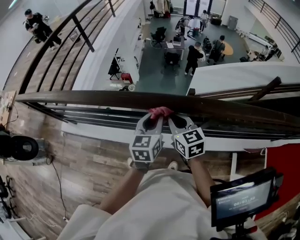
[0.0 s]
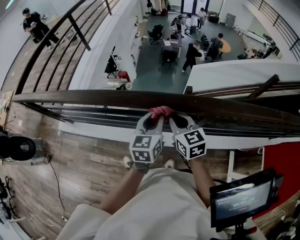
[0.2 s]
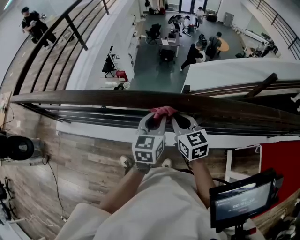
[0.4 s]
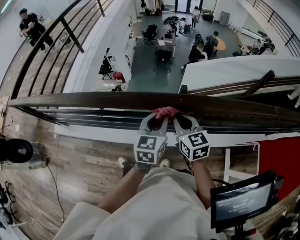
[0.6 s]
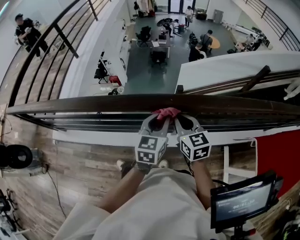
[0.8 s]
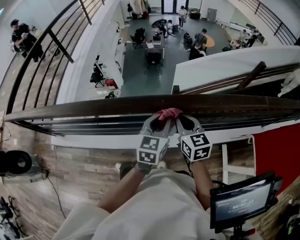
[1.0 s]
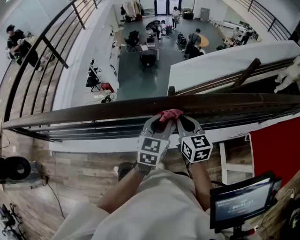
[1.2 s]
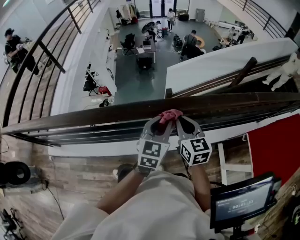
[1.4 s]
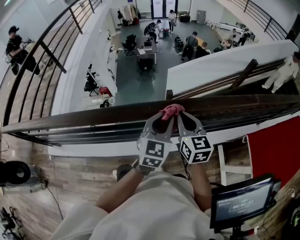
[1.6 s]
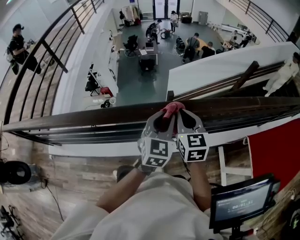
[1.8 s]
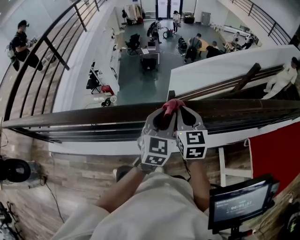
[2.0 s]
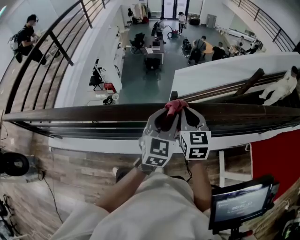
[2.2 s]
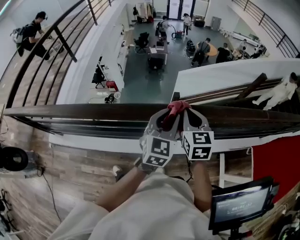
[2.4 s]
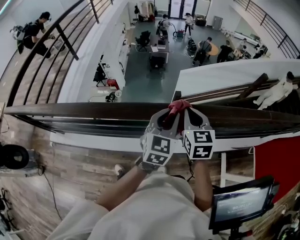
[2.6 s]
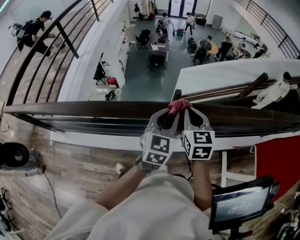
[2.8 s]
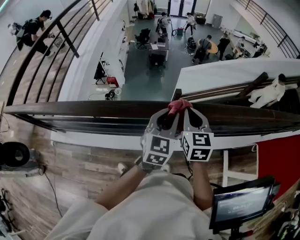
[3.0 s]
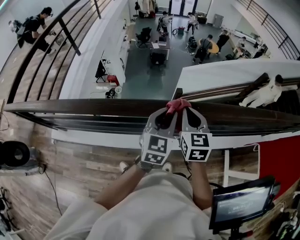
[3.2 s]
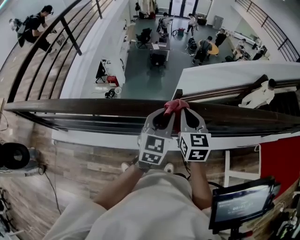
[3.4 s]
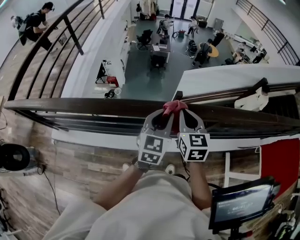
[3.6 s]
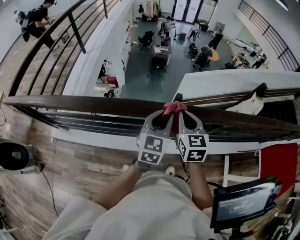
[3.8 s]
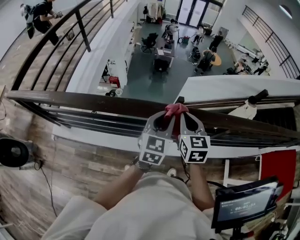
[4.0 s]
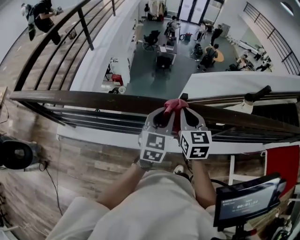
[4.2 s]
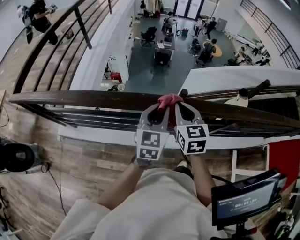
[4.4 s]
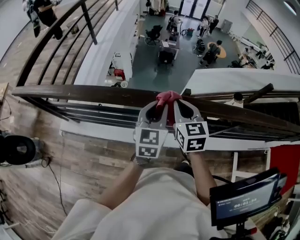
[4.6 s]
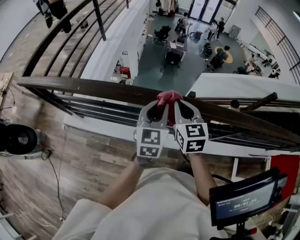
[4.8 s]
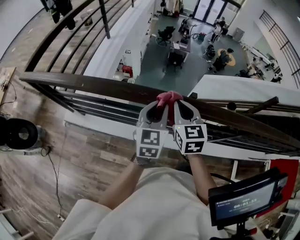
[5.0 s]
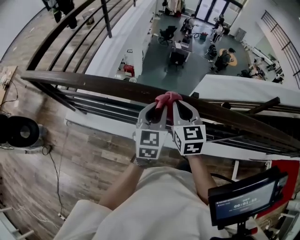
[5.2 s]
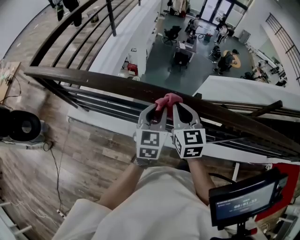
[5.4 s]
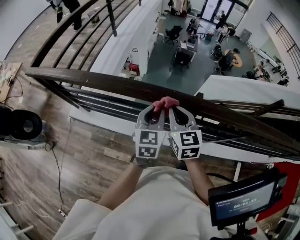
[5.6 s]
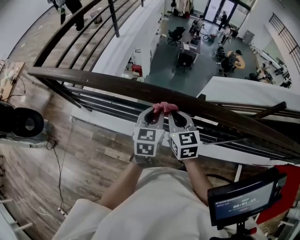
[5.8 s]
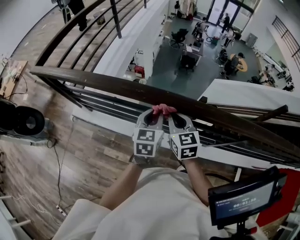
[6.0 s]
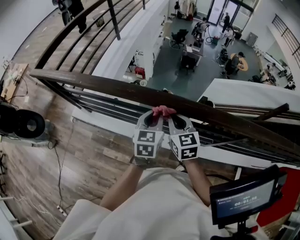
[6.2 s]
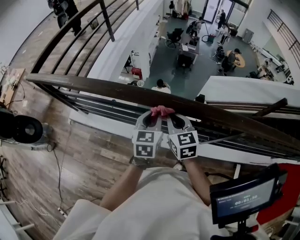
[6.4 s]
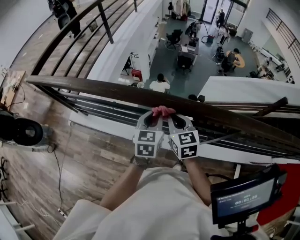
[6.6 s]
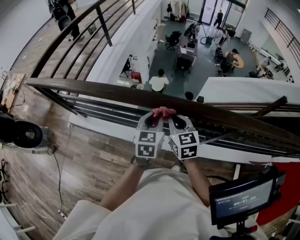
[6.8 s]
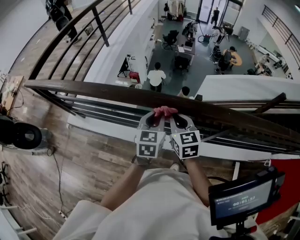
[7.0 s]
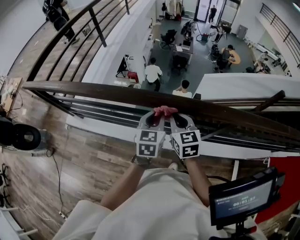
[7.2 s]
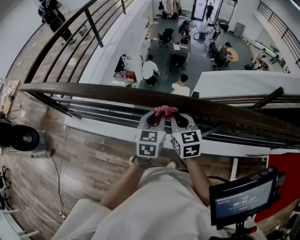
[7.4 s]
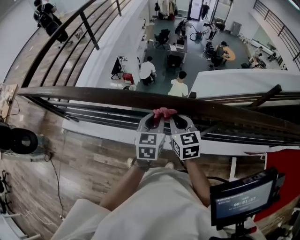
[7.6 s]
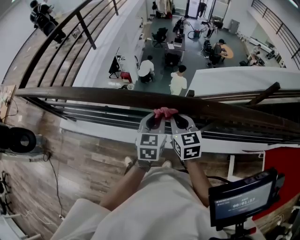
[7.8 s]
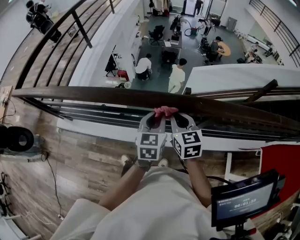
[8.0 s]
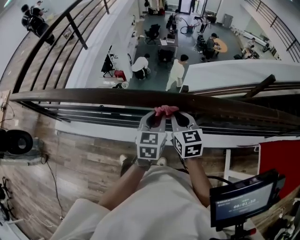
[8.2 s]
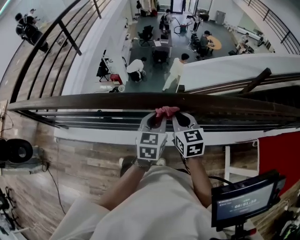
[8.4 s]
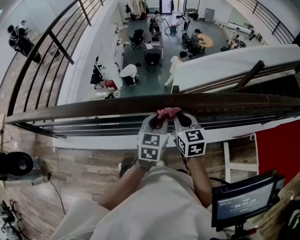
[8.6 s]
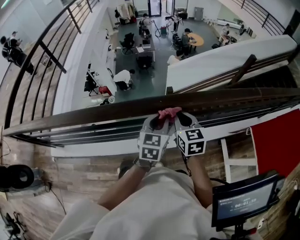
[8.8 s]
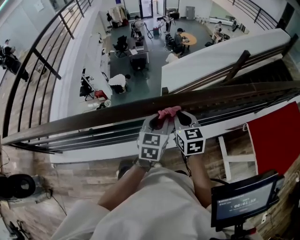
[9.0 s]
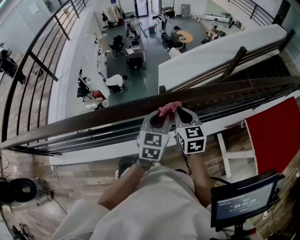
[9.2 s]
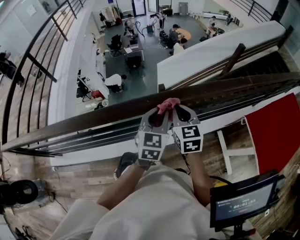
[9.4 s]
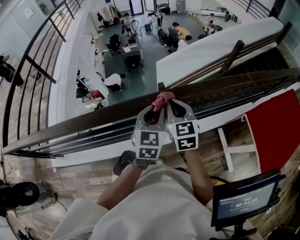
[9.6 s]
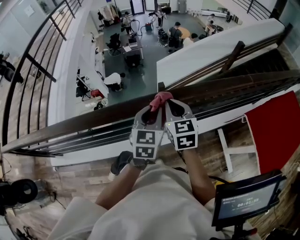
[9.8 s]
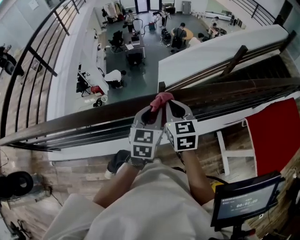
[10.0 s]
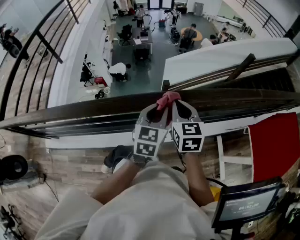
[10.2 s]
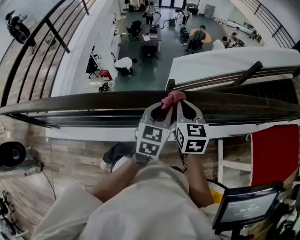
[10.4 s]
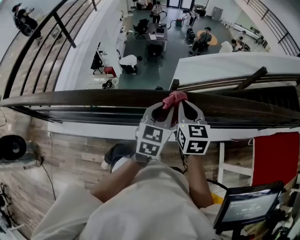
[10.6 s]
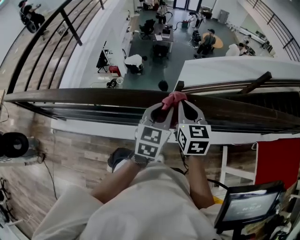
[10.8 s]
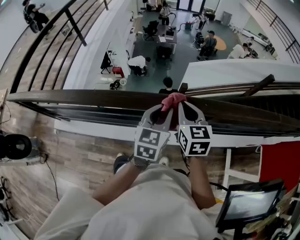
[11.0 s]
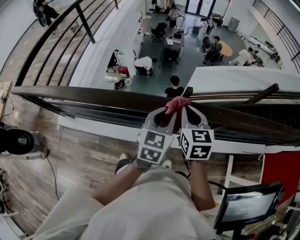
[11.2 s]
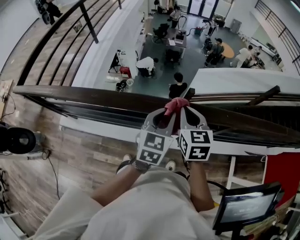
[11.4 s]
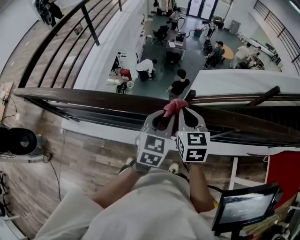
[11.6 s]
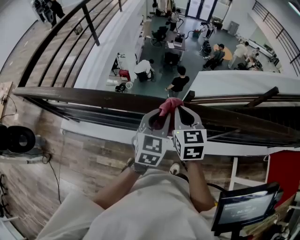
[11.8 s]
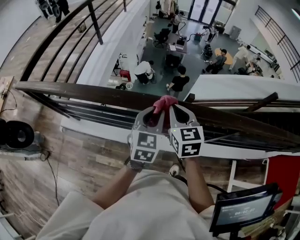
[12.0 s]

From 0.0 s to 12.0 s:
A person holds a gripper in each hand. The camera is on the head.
From 0.0 s to 1.6 s: The two grippers go about 20 cm to the right. The left gripper turns by some 30 degrees; the right gripper rotates about 30 degrees.
From 1.6 s to 3.0 s: Both grippers move to the left, some 10 cm.
From 3.0 s to 4.4 s: Both grippers travel together to the left, approximately 25 cm.
From 4.4 s to 6.0 s: The grippers both shift to the left and downward by approximately 10 cm.
From 6.0 s to 7.6 s: Both grippers travel together to the right, approximately 20 cm.
From 7.6 s to 9.0 s: The grippers both shift to the right by about 20 cm. The right gripper rotates about 20 degrees. The left gripper rotates roughly 20 degrees.
From 9.0 s to 10.4 s: The left gripper changes place by approximately 5 cm. The right gripper goes approximately 10 cm upward and to the left.
From 10.4 s to 12.0 s: Both grippers travel together to the left, roughly 30 cm.

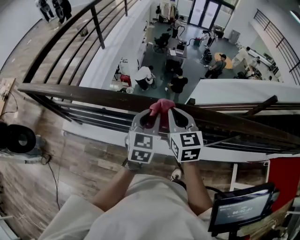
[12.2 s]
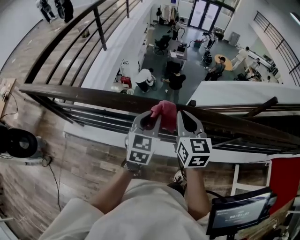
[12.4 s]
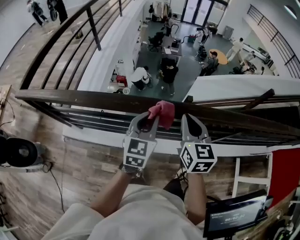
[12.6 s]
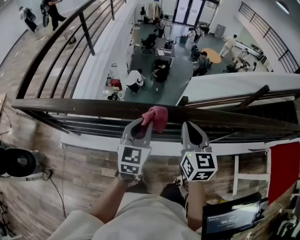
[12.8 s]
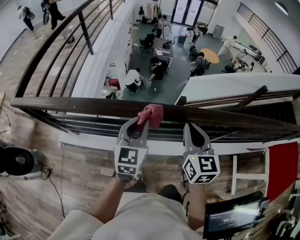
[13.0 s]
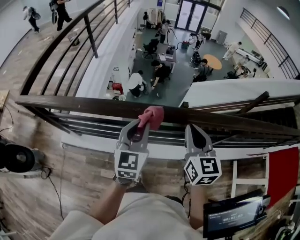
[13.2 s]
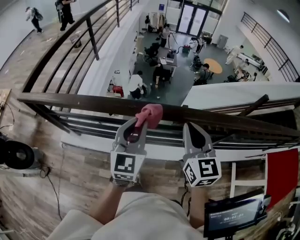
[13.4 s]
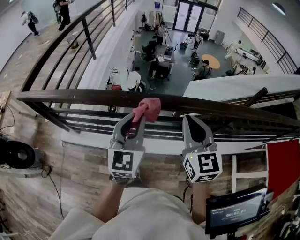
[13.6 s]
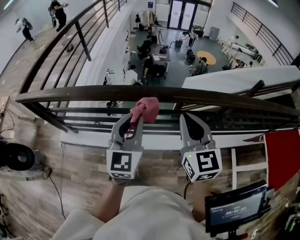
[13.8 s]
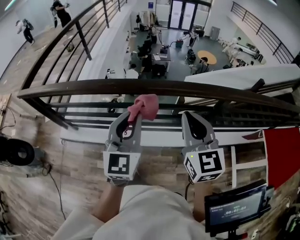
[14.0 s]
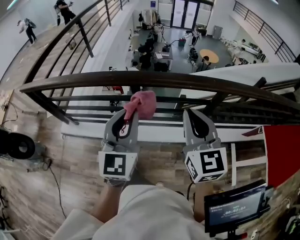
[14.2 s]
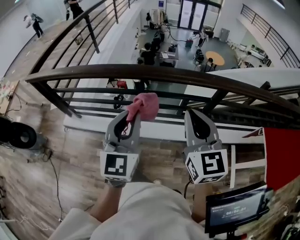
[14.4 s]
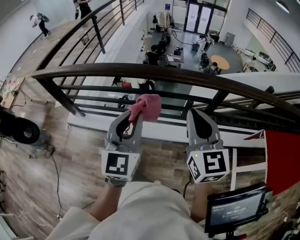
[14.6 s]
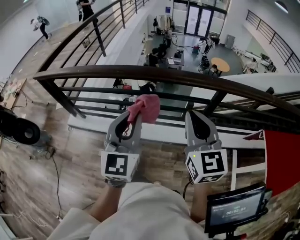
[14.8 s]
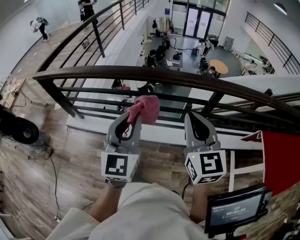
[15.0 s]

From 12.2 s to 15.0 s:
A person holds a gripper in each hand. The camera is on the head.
From 12.2 s to 13.6 s: The right gripper shifts approximately 15 cm backward and upward, while the left gripper heads upward and backward, covering approximately 15 cm.
From 13.6 s to 15.0 s: Both grippers travel together backward and to the right, roughly 20 cm.

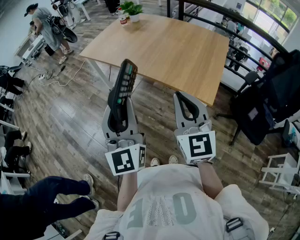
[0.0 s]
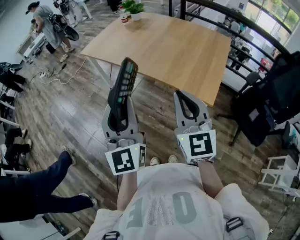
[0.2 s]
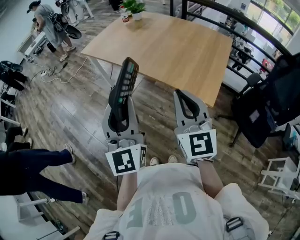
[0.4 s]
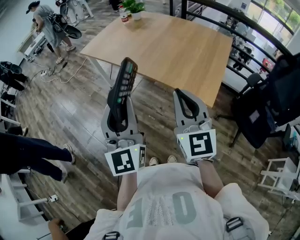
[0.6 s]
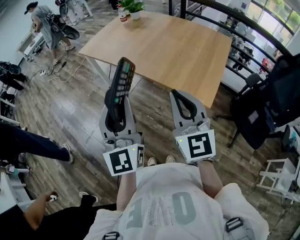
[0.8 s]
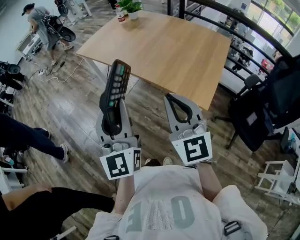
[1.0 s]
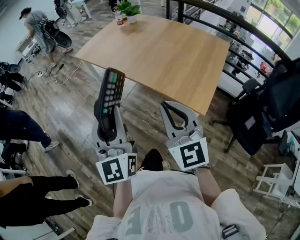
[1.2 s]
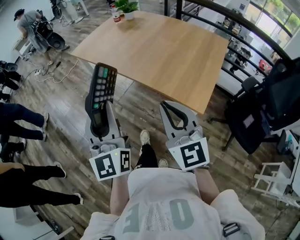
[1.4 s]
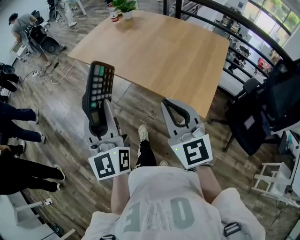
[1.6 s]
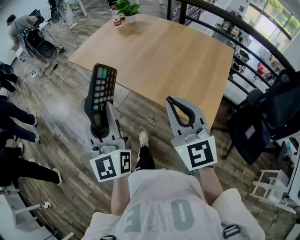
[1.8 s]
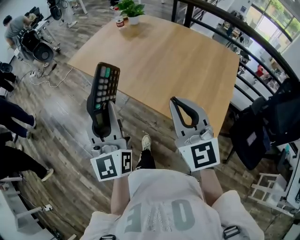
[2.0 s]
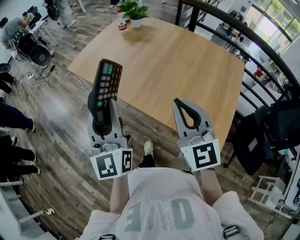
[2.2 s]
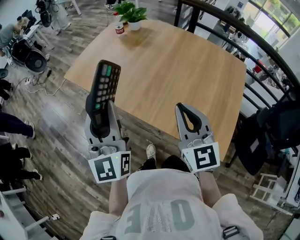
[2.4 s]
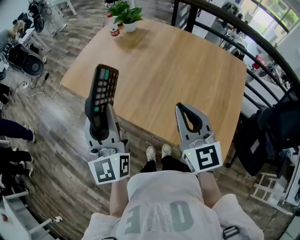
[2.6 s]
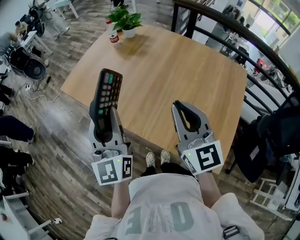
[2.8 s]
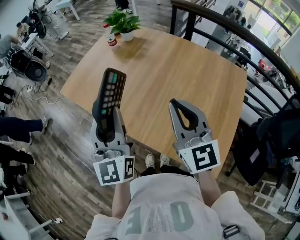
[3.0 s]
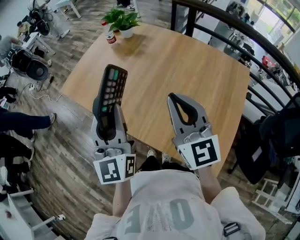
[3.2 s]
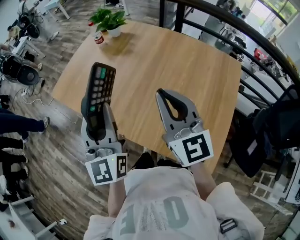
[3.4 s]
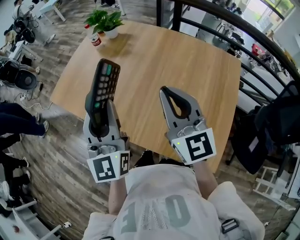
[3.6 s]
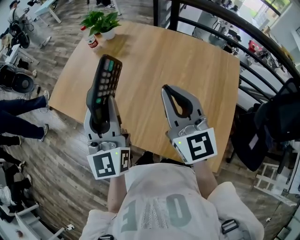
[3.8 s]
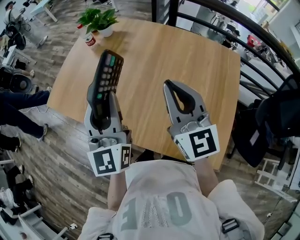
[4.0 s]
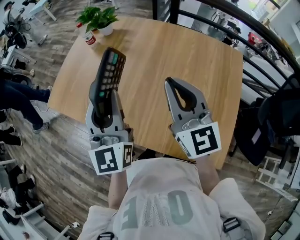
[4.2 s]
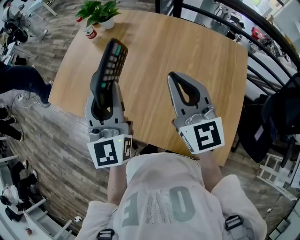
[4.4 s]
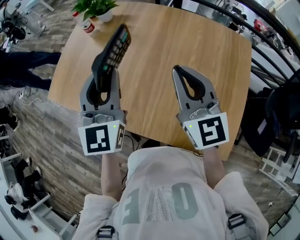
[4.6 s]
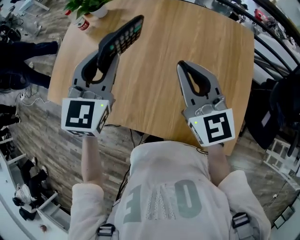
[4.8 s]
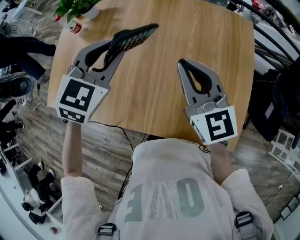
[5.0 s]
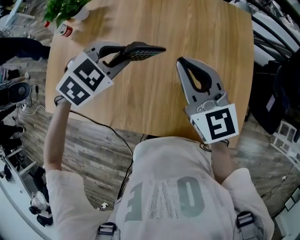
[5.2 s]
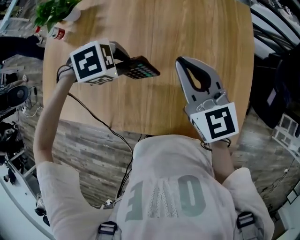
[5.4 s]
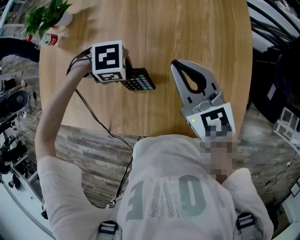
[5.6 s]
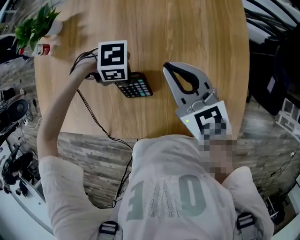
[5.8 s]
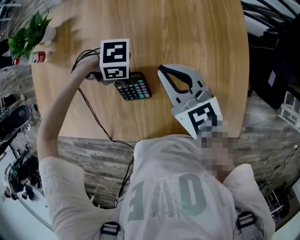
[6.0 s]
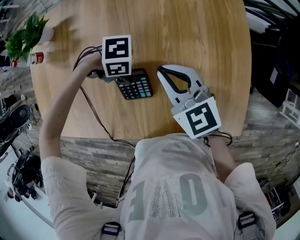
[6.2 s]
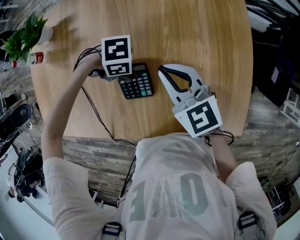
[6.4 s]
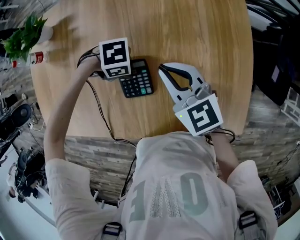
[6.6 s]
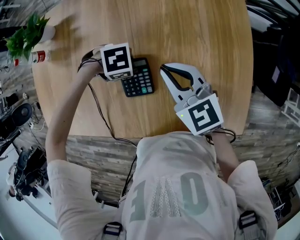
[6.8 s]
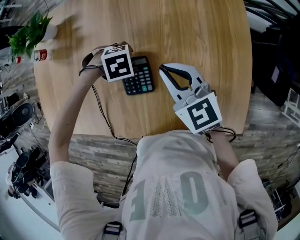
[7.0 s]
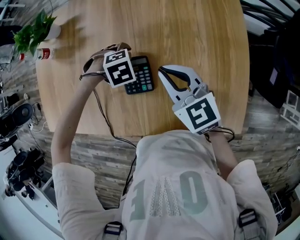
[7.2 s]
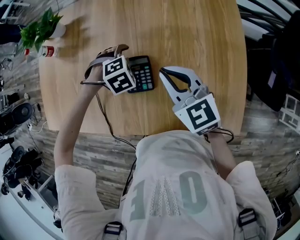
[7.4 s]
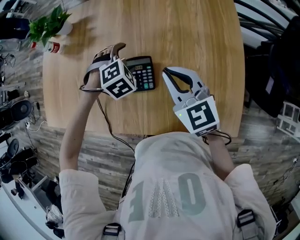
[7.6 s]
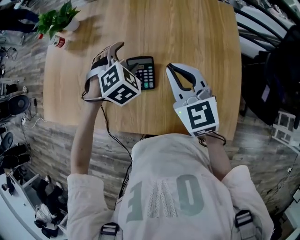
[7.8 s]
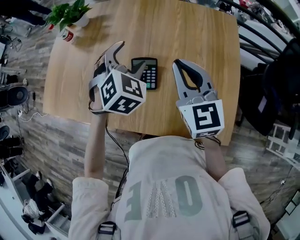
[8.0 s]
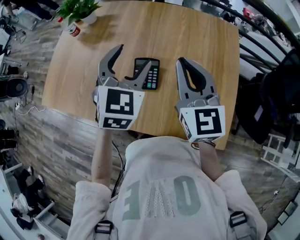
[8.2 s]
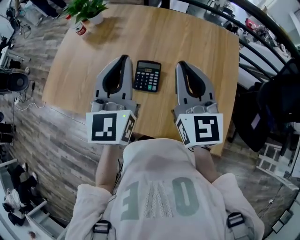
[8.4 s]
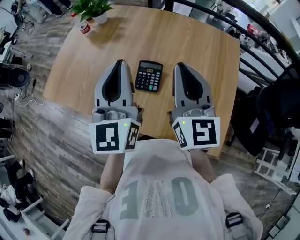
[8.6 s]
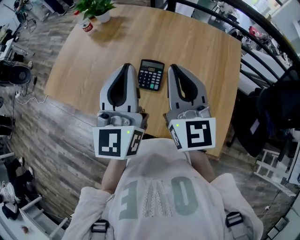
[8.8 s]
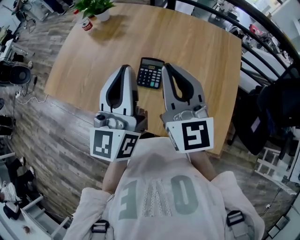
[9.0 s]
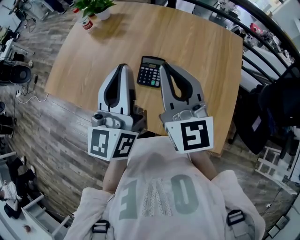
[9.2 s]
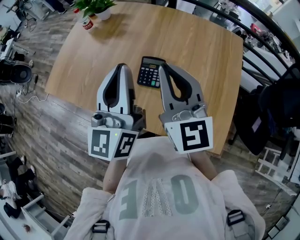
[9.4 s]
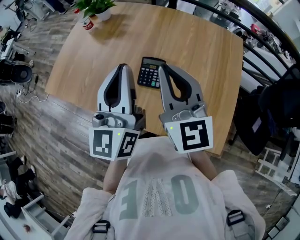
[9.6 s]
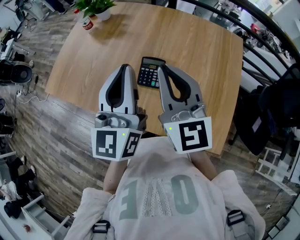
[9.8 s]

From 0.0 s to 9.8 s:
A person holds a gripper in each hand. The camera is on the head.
From 0.0 s to 1.4 s: The grippers make only small movements.
From 1.4 s to 2.8 s: Both grippers move forward, roughly 40 cm.
From 2.8 s to 4.2 s: The two grippers go about 10 cm forward and to the right.
From 4.2 s to 5.6 s: The right gripper shifts roughly 10 cm downward, and changes its angle by roughly 20 degrees. Meanwhile the left gripper is displaced downward by roughly 30 cm, and points its fingers roughly 80 degrees further downward.
From 5.6 s to 7.0 s: The grippers both shift downward by some 5 cm. The left gripper opens up.
From 7.0 s to 8.4 s: The right gripper travels upward by approximately 20 cm, and rotates roughly 30 degrees; the left gripper shifts approximately 35 cm upward, tips its fingers upward by roughly 80 degrees, and closes up.
From 8.4 s to 9.8 s: The right gripper goes approximately 5 cm to the left. The left gripper heads backward, covering approximately 5 cm.
